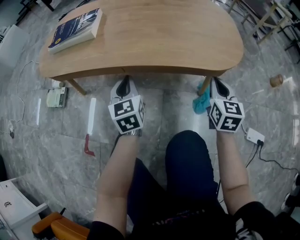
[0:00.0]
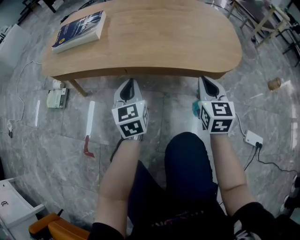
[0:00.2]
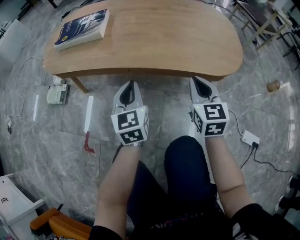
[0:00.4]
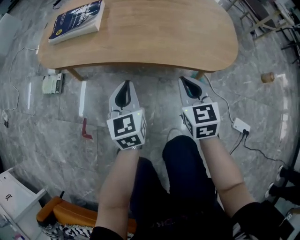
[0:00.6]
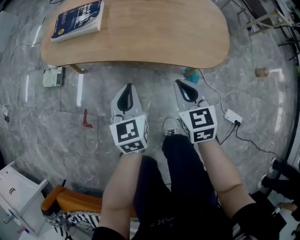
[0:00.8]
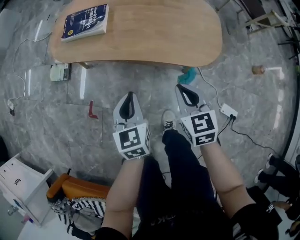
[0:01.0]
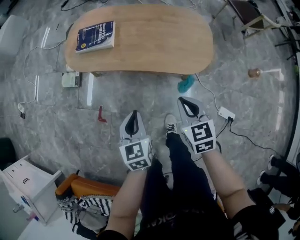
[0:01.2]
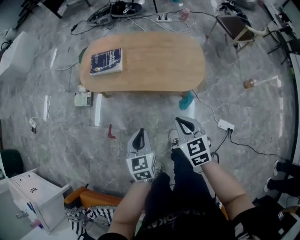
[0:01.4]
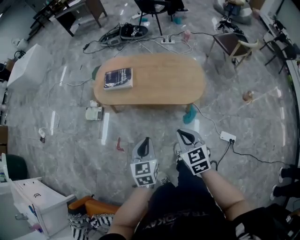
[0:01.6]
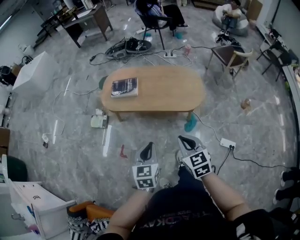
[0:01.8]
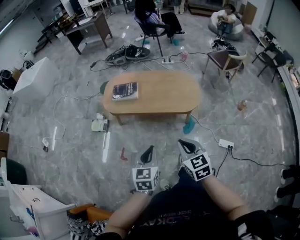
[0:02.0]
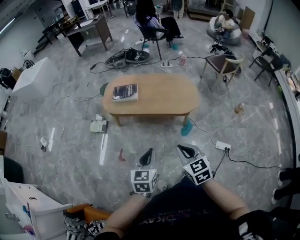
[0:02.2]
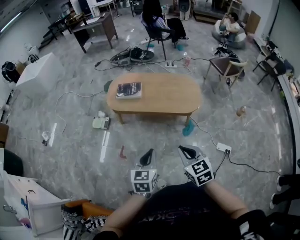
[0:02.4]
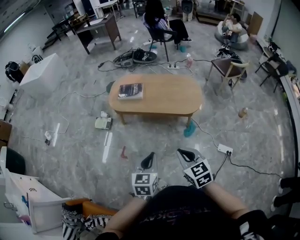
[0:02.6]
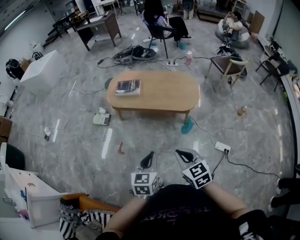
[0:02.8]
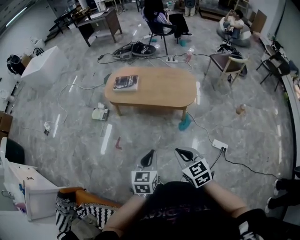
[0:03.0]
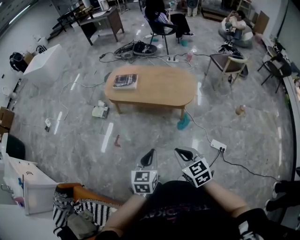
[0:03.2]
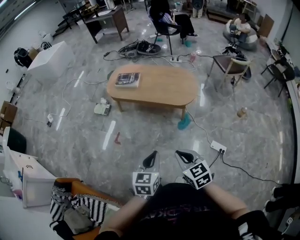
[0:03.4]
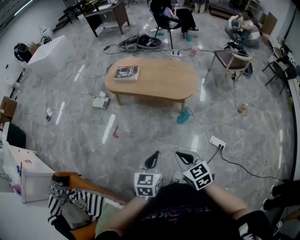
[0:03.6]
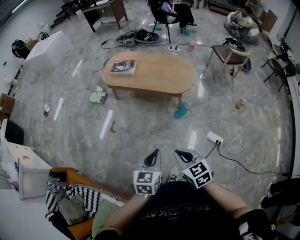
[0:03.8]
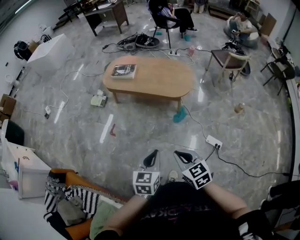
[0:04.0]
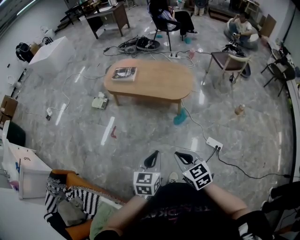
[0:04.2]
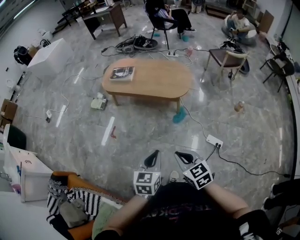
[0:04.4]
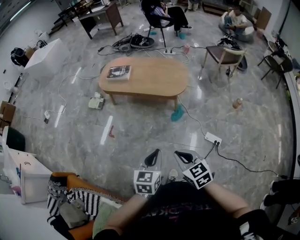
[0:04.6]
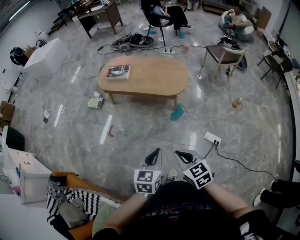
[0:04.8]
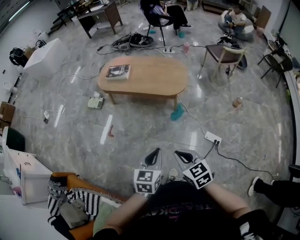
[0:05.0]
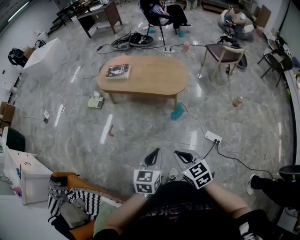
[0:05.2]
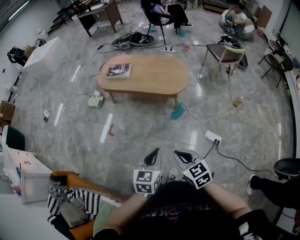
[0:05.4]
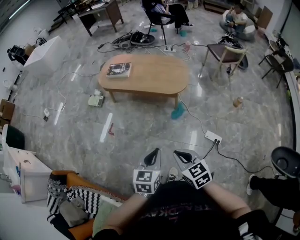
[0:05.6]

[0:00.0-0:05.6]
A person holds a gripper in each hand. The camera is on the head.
0:00.0 to 0:01.4: The right gripper is displaced upward by approximately 40 cm, and changes its angle by some 30 degrees, while the left gripper is displaced upward and backward by some 50 cm.
0:01.4 to 0:02.8: The grippers both shift backward and upward by approximately 35 cm.
0:02.8 to 0:04.2: The right gripper travels backward and to the right by roughly 20 cm. Meanwhile the left gripper shifts about 20 cm to the right and backward.
0:04.2 to 0:05.6: There are only small adjustments of the grippers.

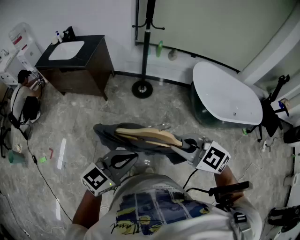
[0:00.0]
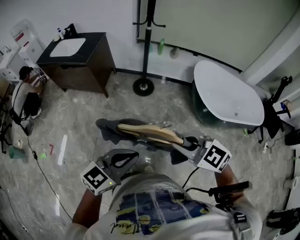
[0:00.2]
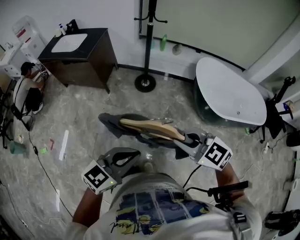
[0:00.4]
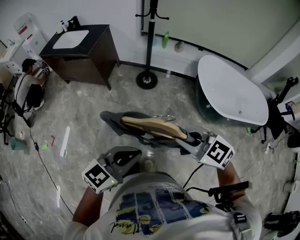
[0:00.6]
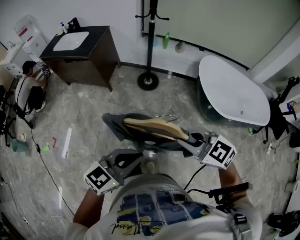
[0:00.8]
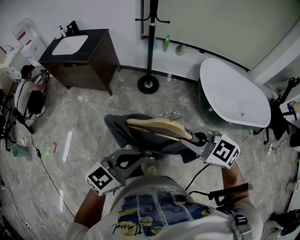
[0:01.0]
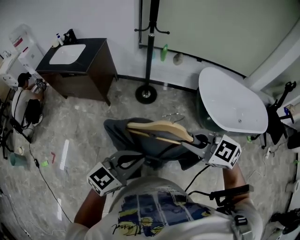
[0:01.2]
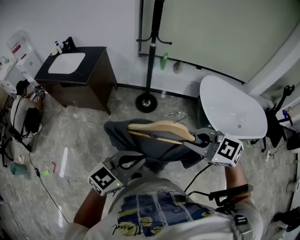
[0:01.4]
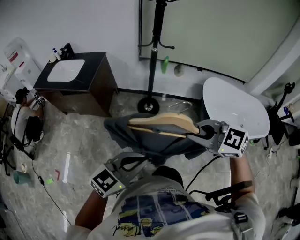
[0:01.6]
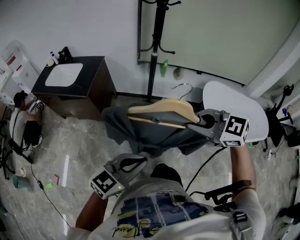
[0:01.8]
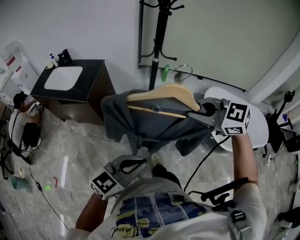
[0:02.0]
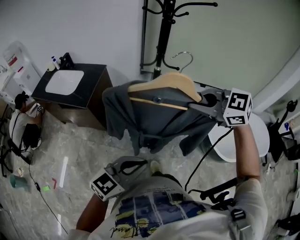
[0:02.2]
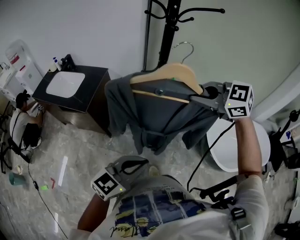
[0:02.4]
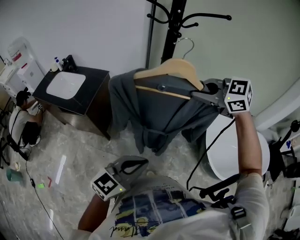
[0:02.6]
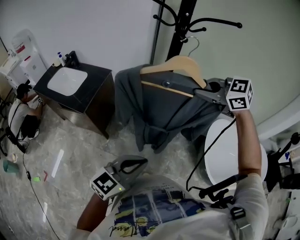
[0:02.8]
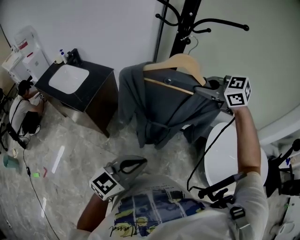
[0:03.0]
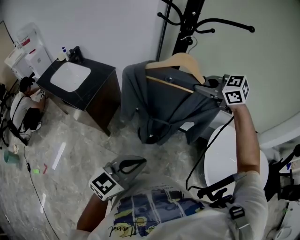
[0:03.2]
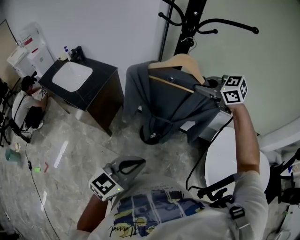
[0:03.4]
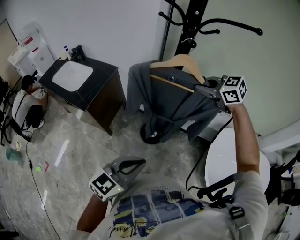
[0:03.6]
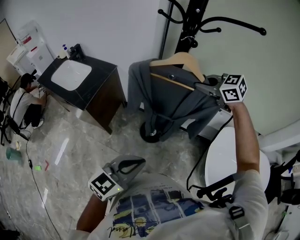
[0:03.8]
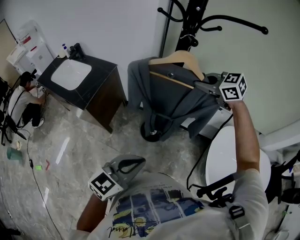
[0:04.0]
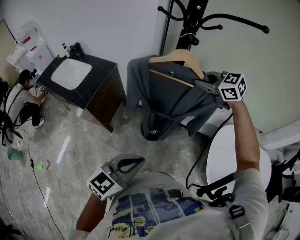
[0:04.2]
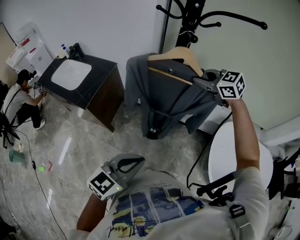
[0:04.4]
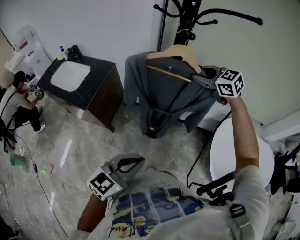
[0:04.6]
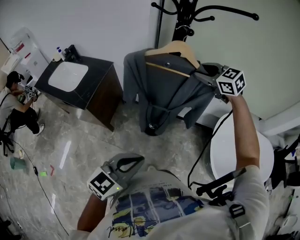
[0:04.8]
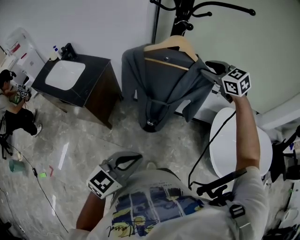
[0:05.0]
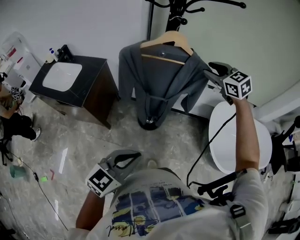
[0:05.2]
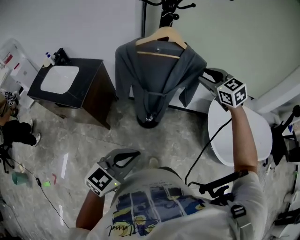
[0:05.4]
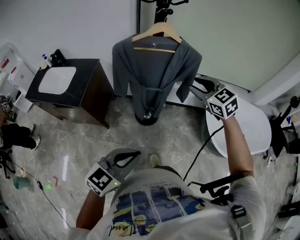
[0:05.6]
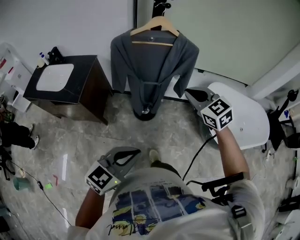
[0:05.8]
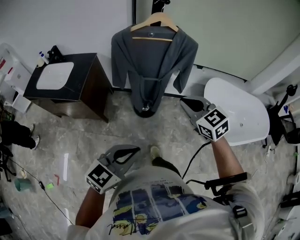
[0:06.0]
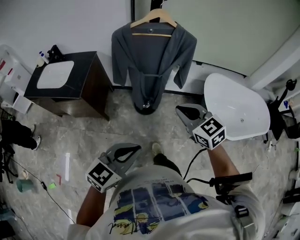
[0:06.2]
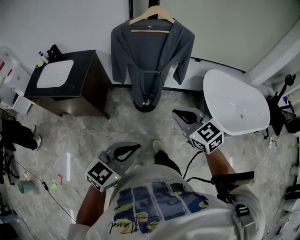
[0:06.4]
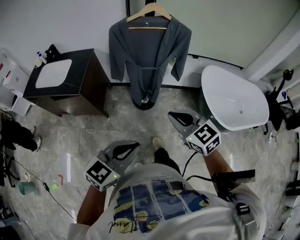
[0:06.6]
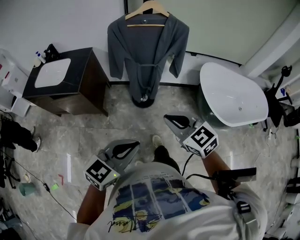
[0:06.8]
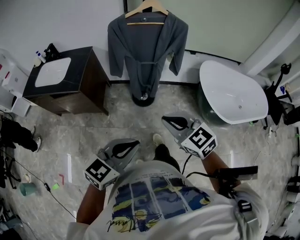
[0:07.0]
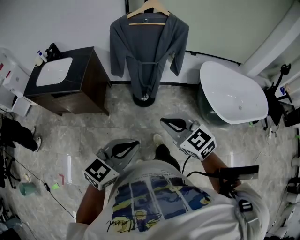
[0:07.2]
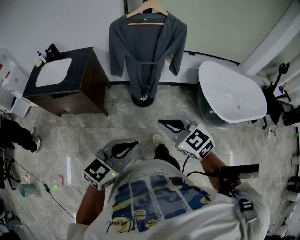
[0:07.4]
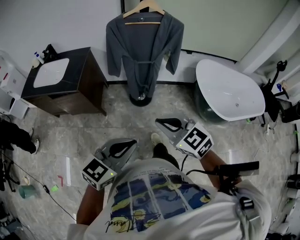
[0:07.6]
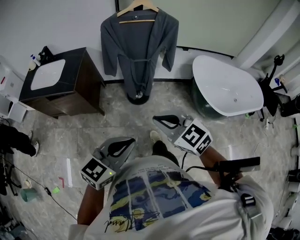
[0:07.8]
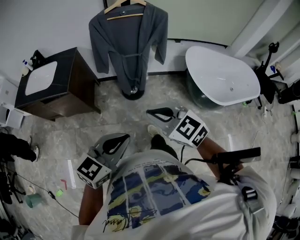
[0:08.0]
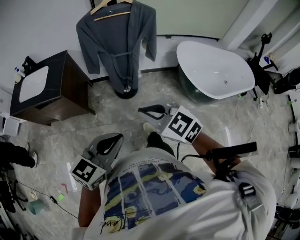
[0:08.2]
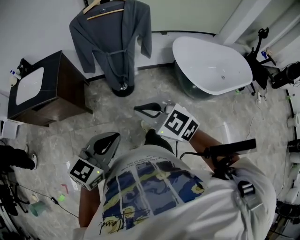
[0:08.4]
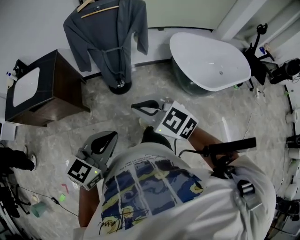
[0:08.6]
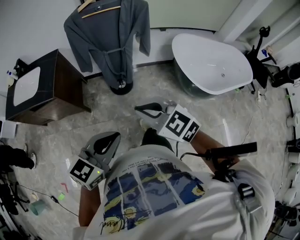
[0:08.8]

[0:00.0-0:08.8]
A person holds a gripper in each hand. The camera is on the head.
0:00.0 to 0:01.4: Both grippers travel together forward, some 15 cm.
0:01.4 to 0:03.0: The right gripper goes about 50 cm forward, while the left gripper moves forward, approximately 30 cm.
0:03.0 to 0:04.4: The right gripper moves forward and downward, about 10 cm.
0:04.4 to 0:05.8: The right gripper travels backward by approximately 25 cm, swivels some 30 degrees, and opens and closes again. Meanwhile the left gripper moves backward, approximately 15 cm.
0:05.8 to 0:07.4: The right gripper goes roughly 30 cm backward; the left gripper heads backward, covering about 10 cm.
0:07.4 to 0:08.8: The grippers make only small movements.

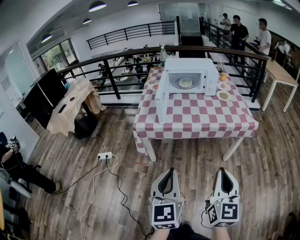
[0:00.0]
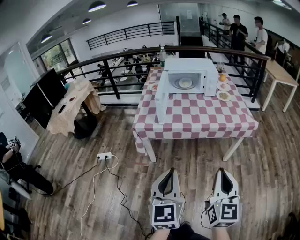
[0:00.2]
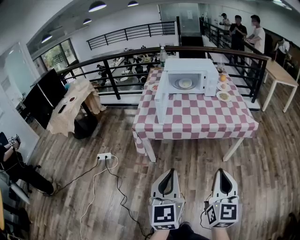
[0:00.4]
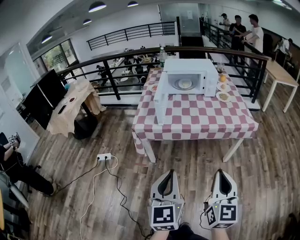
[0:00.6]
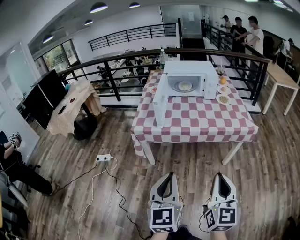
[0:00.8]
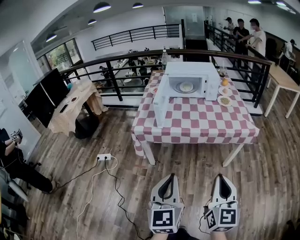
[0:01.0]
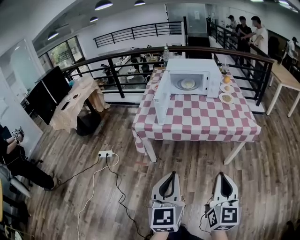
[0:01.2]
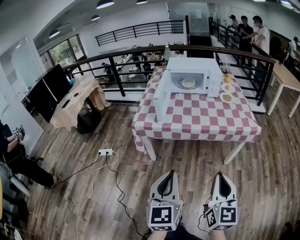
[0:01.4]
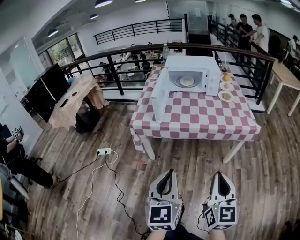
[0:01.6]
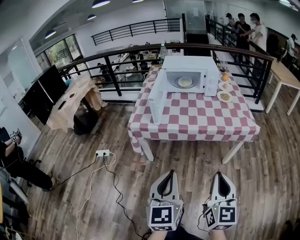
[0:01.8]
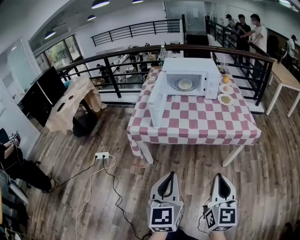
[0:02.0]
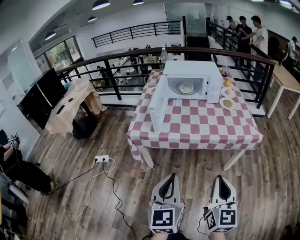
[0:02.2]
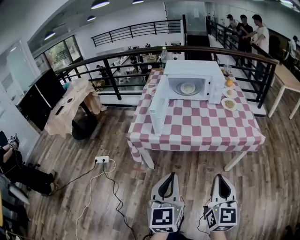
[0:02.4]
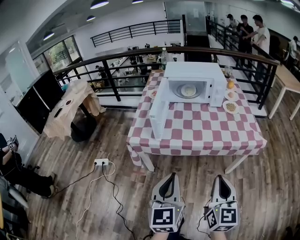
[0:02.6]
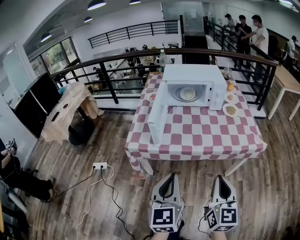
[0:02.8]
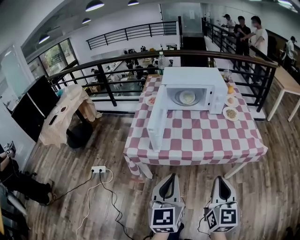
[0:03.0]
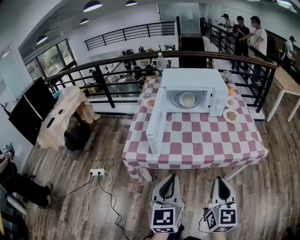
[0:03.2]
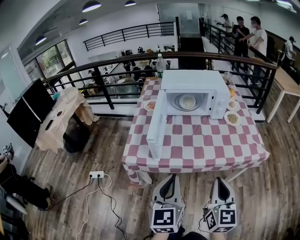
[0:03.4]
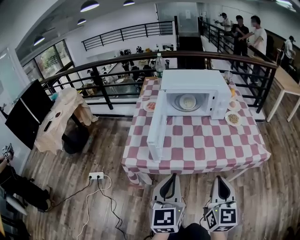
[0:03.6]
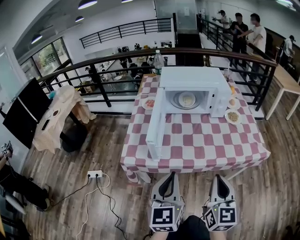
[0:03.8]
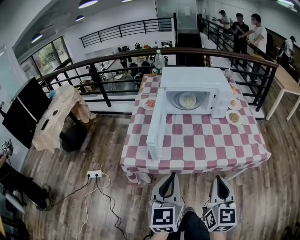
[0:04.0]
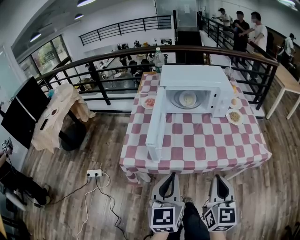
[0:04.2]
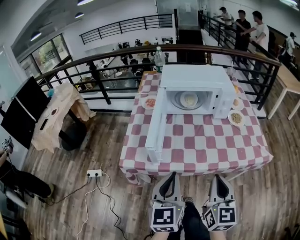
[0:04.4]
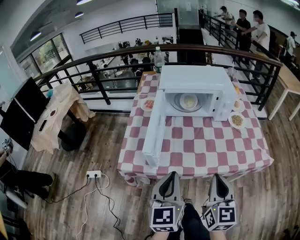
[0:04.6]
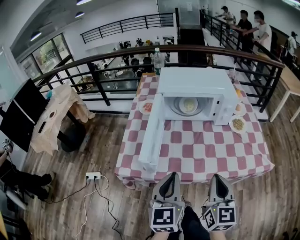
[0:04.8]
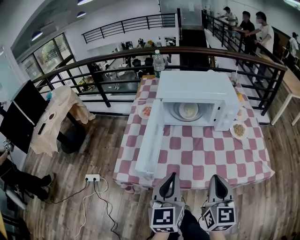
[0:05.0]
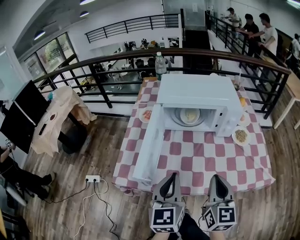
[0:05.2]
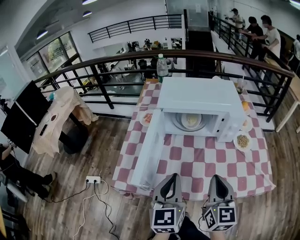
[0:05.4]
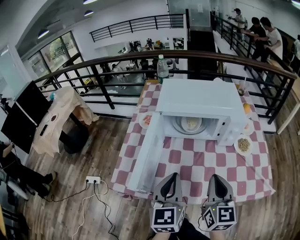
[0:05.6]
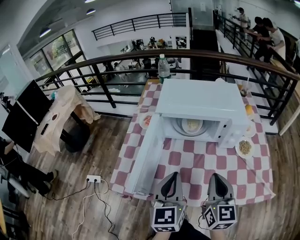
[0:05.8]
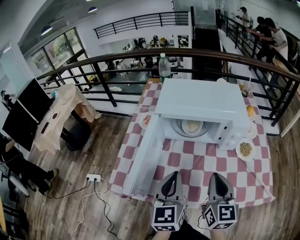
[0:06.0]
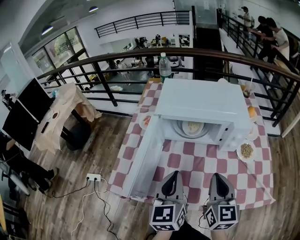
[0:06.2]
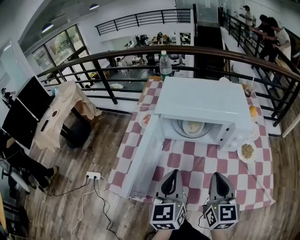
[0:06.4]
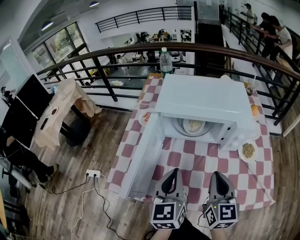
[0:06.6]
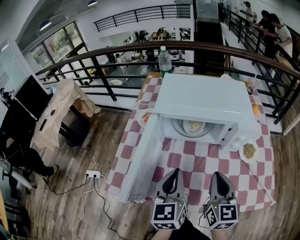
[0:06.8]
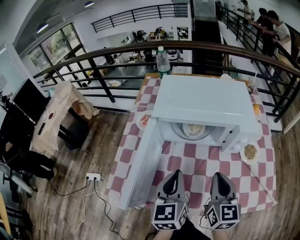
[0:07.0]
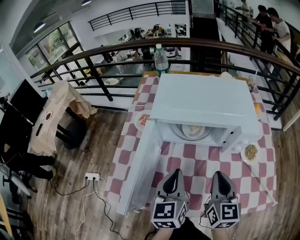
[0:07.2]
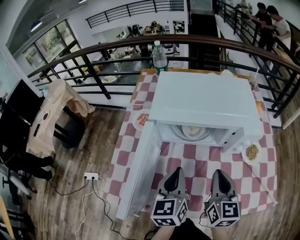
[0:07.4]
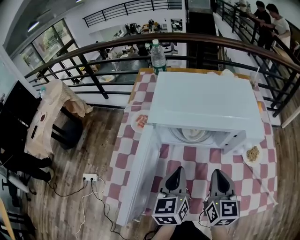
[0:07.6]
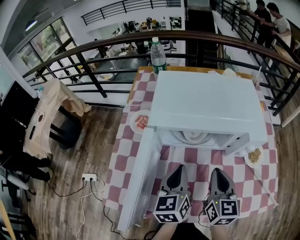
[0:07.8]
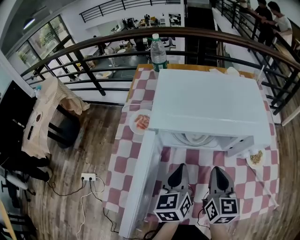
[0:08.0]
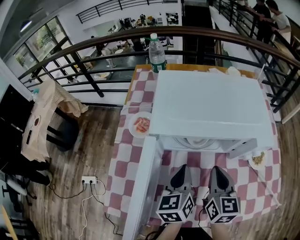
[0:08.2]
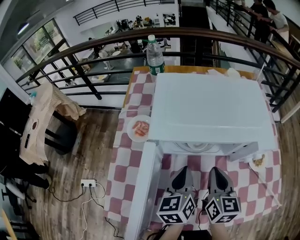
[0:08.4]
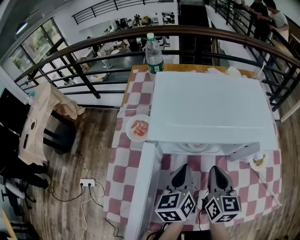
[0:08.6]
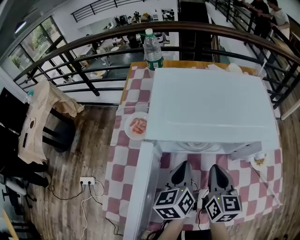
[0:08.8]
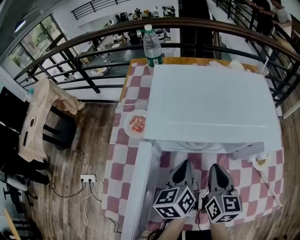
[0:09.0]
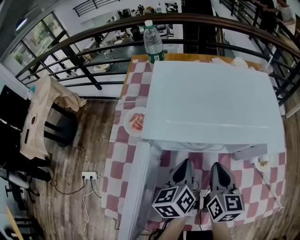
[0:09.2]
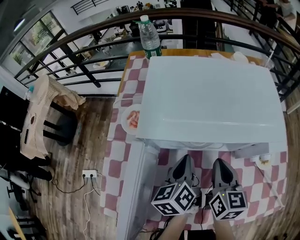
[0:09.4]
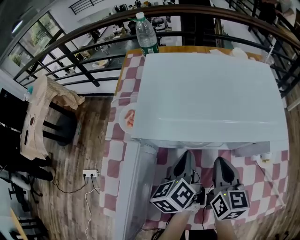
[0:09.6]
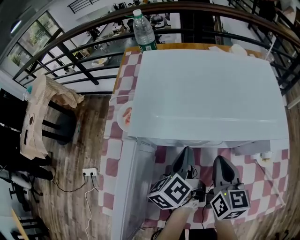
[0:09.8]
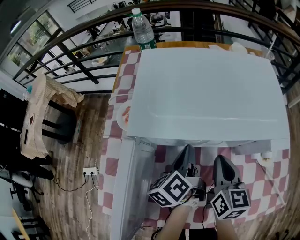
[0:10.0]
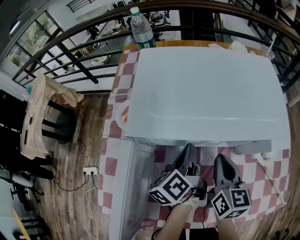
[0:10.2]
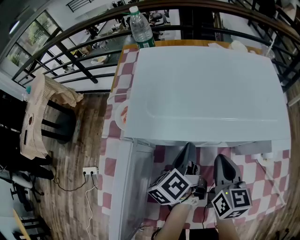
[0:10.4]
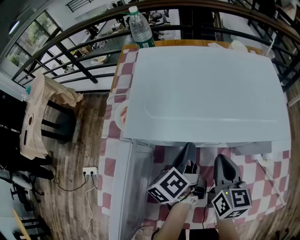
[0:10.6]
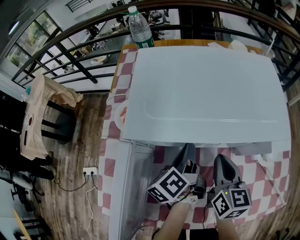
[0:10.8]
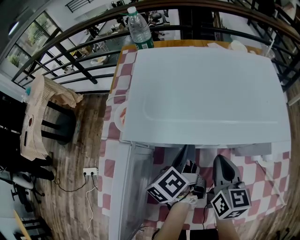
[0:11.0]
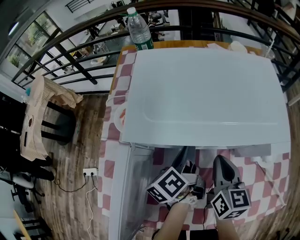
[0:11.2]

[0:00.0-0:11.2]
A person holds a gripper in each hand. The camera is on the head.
0:00.0 to 0:01.6: The right gripper shifts by about 5 cm.
0:01.6 to 0:03.2: Both grippers travel together forward, roughly 20 cm.
0:03.2 to 0:04.8: The two grippers go roughly 15 cm forward.
0:04.8 to 0:06.4: Both grippers move forward, roughly 20 cm.
0:06.4 to 0:08.0: Both grippers travel together forward and downward, approximately 15 cm.
0:08.0 to 0:09.6: The left gripper is displaced forward and downward by approximately 10 cm, and swivels roughly 30 degrees; the right gripper travels forward by approximately 5 cm.
0:09.6 to 0:11.2: The grippers stay close to where they were, moving slightly.
